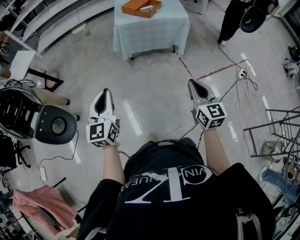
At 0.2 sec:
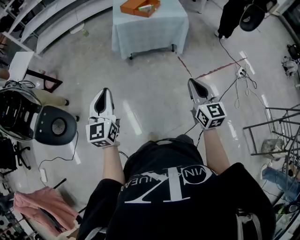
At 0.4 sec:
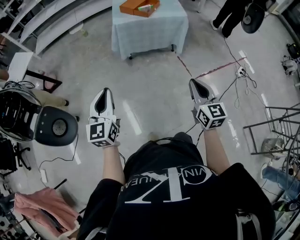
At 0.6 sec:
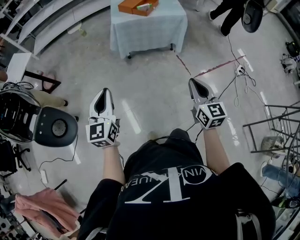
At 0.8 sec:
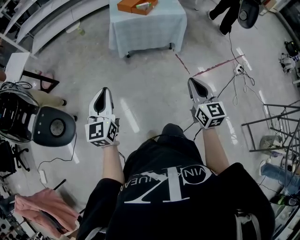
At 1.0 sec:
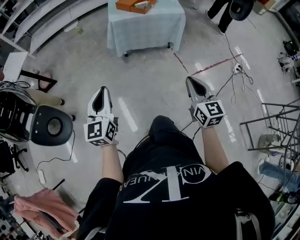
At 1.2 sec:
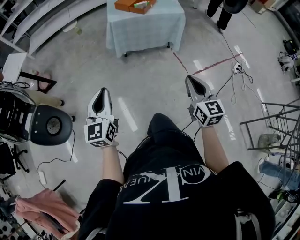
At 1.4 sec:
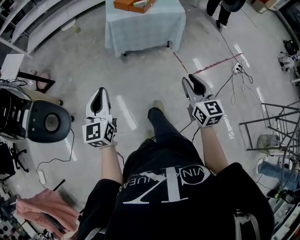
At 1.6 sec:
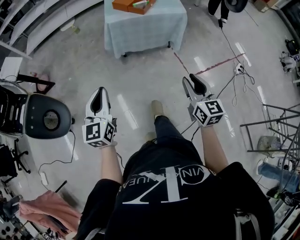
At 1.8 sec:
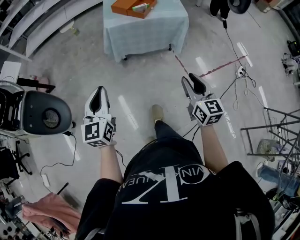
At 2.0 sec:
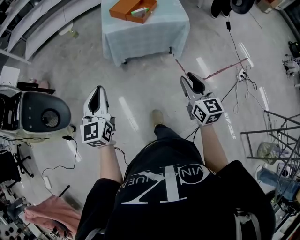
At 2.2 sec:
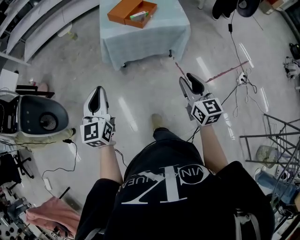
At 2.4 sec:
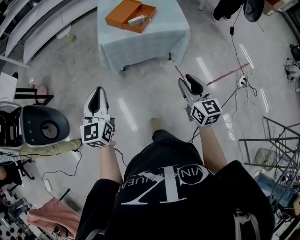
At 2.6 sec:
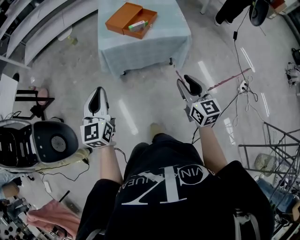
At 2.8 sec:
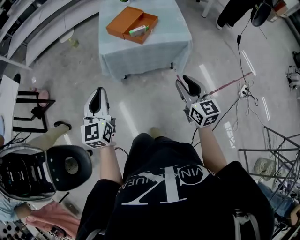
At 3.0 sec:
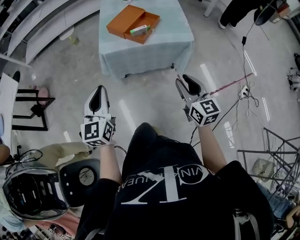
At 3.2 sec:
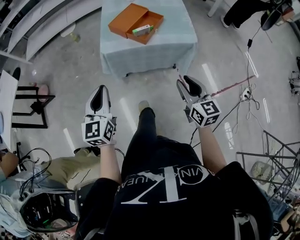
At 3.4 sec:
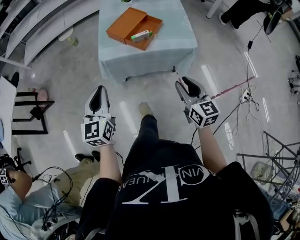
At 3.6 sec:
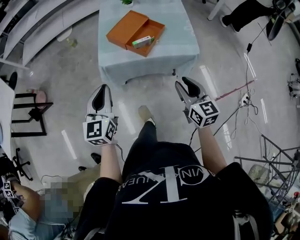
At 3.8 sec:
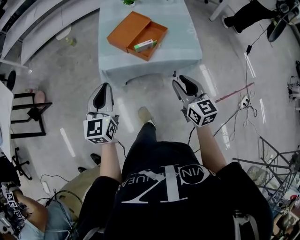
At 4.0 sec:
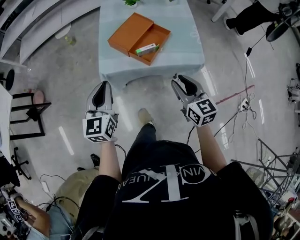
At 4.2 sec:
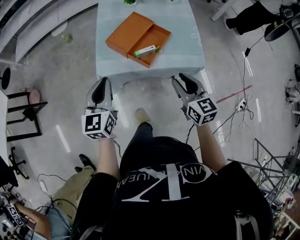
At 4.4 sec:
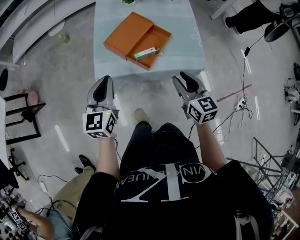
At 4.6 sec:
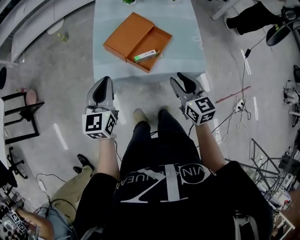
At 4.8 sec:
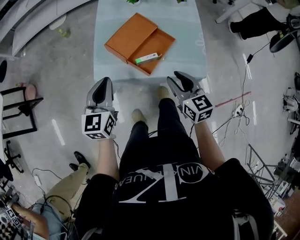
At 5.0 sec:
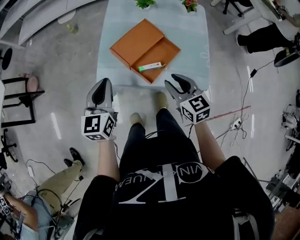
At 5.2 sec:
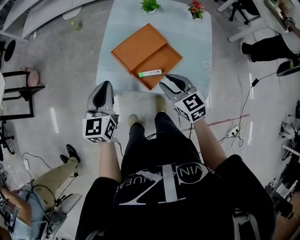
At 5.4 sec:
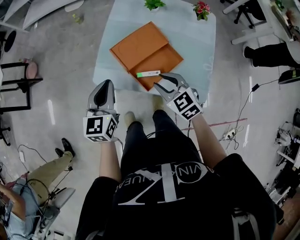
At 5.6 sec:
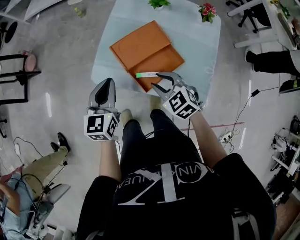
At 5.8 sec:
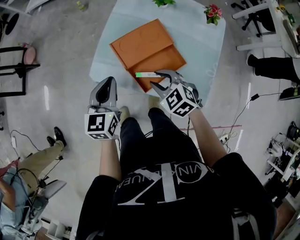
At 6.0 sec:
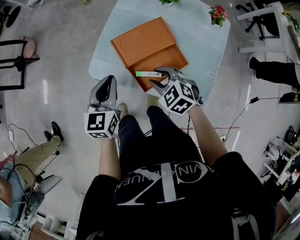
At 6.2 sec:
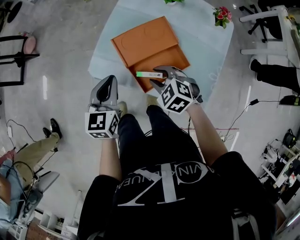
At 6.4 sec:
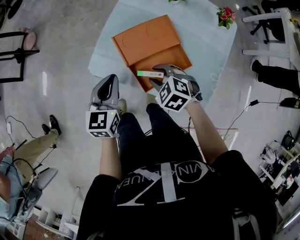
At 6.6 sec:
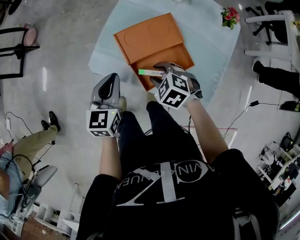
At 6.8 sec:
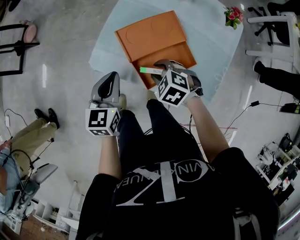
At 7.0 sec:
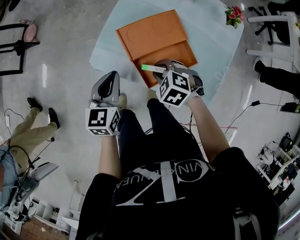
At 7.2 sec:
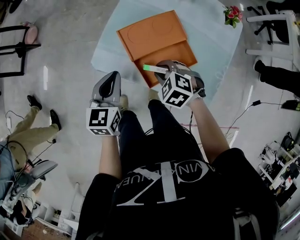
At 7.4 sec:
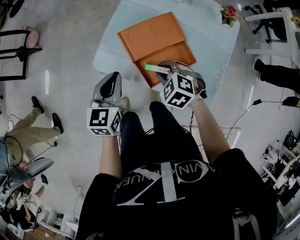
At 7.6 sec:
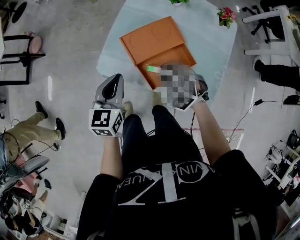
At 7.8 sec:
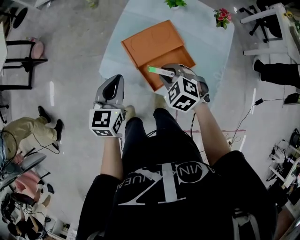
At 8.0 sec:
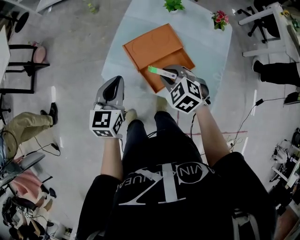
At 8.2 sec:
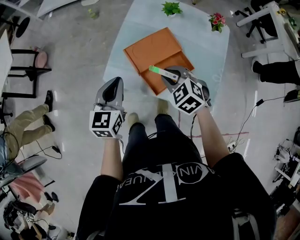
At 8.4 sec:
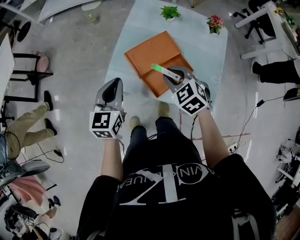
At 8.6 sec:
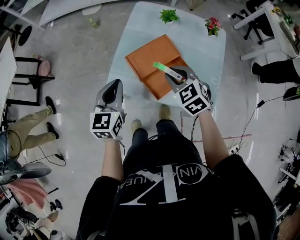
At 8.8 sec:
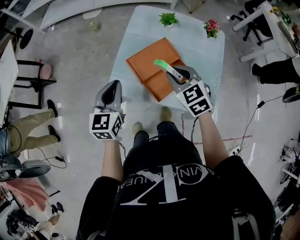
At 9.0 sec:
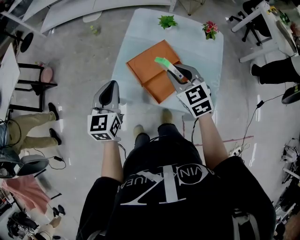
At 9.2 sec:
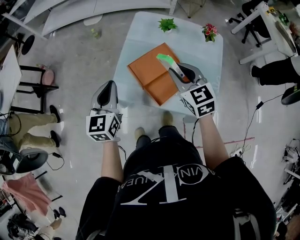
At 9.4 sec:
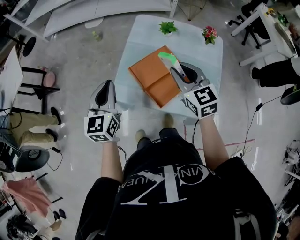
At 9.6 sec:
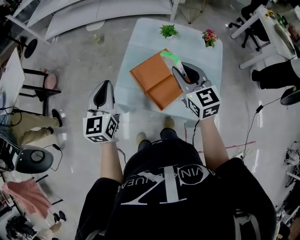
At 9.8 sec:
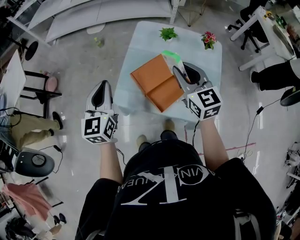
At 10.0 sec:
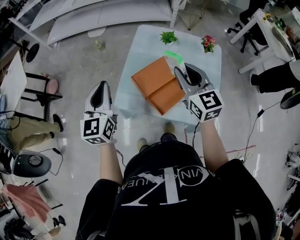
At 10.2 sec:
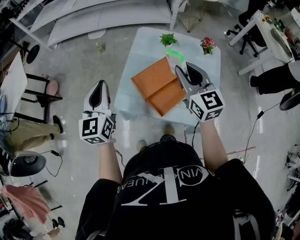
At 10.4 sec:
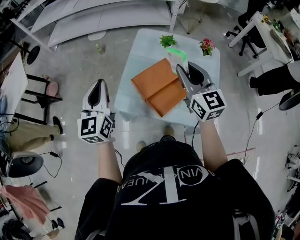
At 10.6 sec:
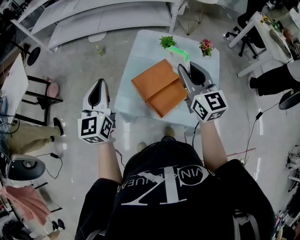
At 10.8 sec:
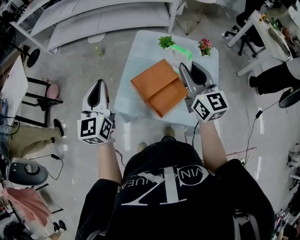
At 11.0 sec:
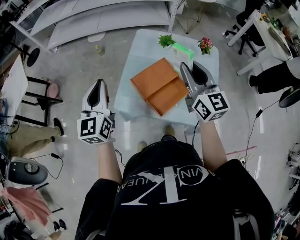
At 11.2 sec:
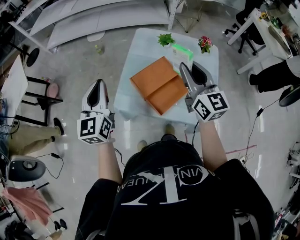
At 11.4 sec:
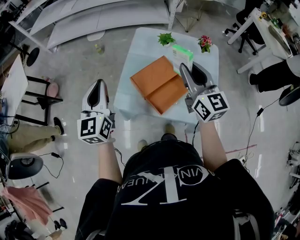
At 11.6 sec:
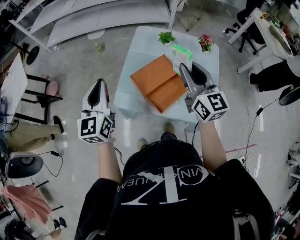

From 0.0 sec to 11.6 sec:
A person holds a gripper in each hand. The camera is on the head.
From 0.0 sec to 1.4 sec: The left gripper heads forward, covering about 5 cm. The right gripper ends up approximately 5 cm from where it was, and opens its fingers.
From 1.4 sec to 2.8 sec: Both grippers travel together forward, approximately 35 cm.
From 2.8 sec to 4.4 sec: The grippers both shift forward by approximately 30 cm.
From 4.4 sec to 5.8 sec: The right gripper changes place by about 20 cm, and turns by about 60 degrees; the left gripper changes place by roughly 10 cm, and swivels some 20 degrees.
From 5.8 sec to 7.2 sec: The right gripper shifts about 5 cm downward, and rotates about 20 degrees.
From 7.2 sec to 8.8 sec: The right gripper shifts roughly 15 cm upward, and swivels some 40 degrees. Meanwhile the left gripper is displaced upward by roughly 10 cm.
From 8.8 sec to 10.2 sec: The right gripper travels upward by about 15 cm, and swivels some 30 degrees, while the left gripper goes roughly 10 cm upward and to the left.
From 10.2 sec to 11.6 sec: There are only small adjustments of the grippers.

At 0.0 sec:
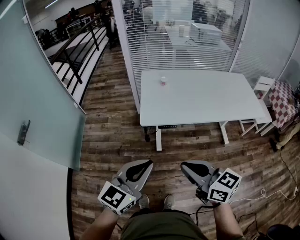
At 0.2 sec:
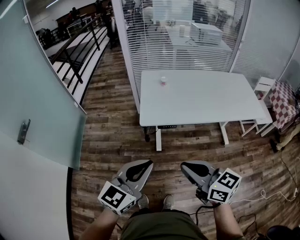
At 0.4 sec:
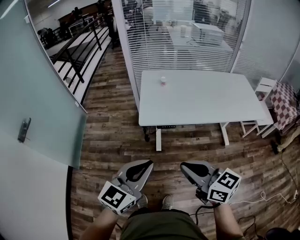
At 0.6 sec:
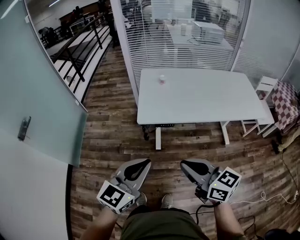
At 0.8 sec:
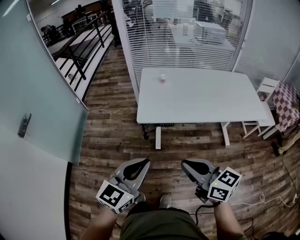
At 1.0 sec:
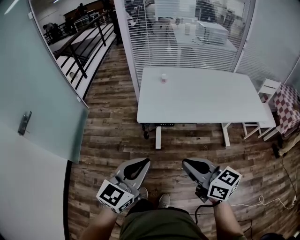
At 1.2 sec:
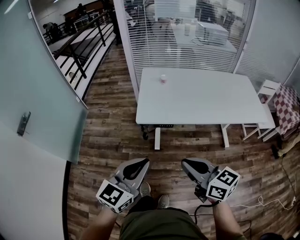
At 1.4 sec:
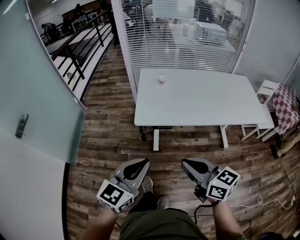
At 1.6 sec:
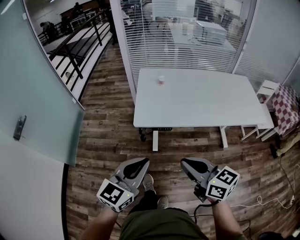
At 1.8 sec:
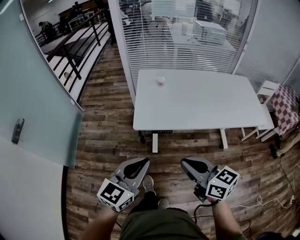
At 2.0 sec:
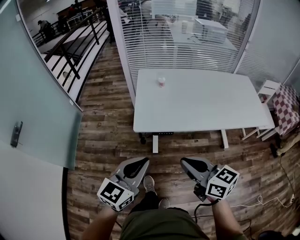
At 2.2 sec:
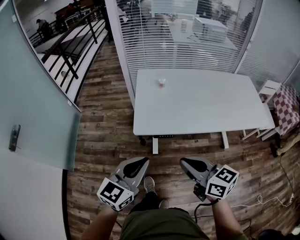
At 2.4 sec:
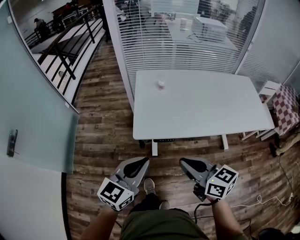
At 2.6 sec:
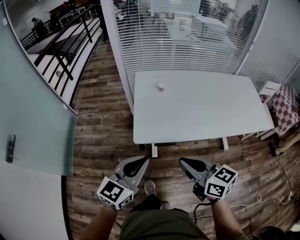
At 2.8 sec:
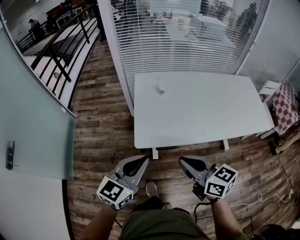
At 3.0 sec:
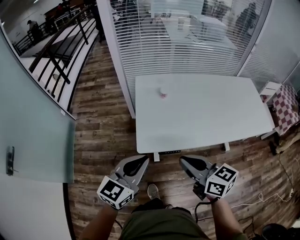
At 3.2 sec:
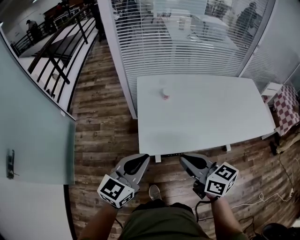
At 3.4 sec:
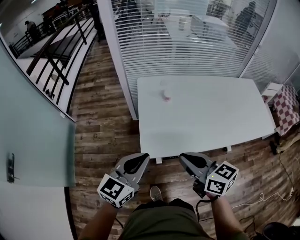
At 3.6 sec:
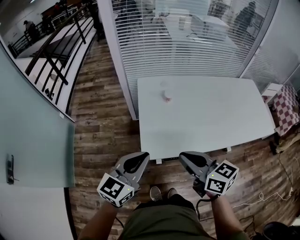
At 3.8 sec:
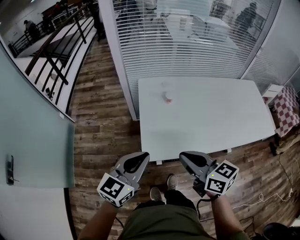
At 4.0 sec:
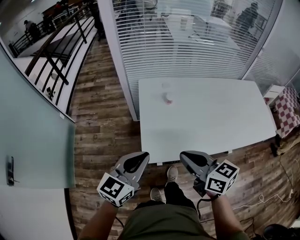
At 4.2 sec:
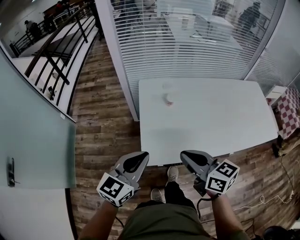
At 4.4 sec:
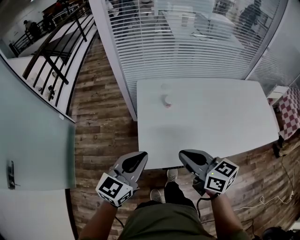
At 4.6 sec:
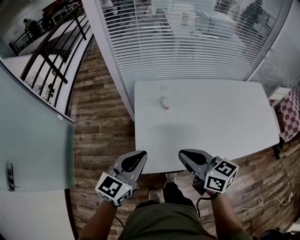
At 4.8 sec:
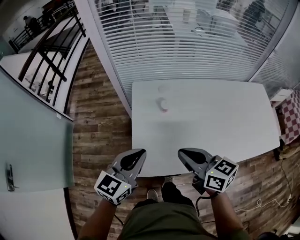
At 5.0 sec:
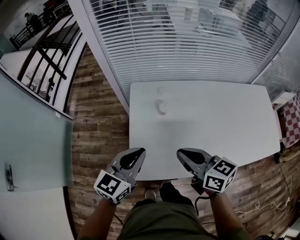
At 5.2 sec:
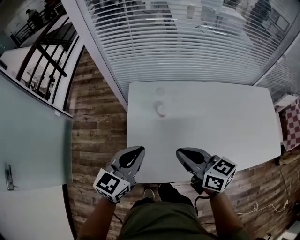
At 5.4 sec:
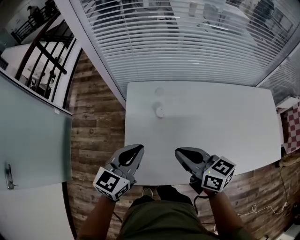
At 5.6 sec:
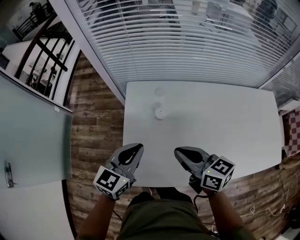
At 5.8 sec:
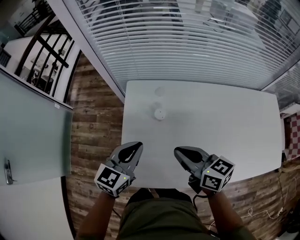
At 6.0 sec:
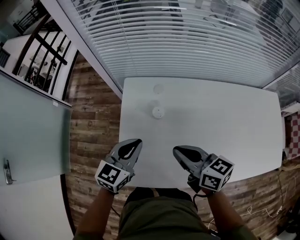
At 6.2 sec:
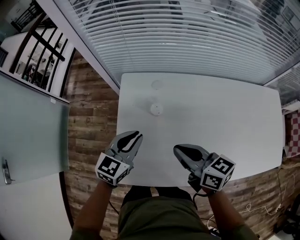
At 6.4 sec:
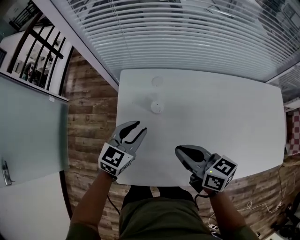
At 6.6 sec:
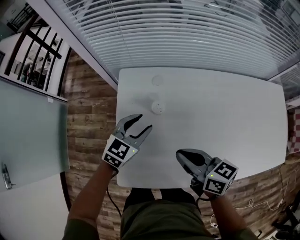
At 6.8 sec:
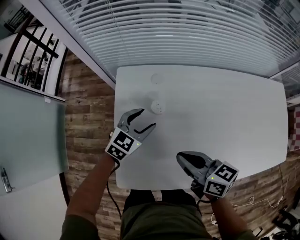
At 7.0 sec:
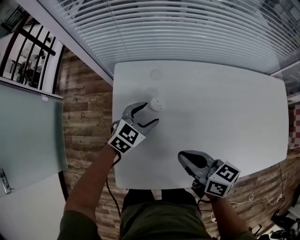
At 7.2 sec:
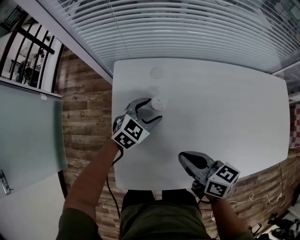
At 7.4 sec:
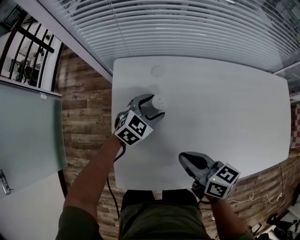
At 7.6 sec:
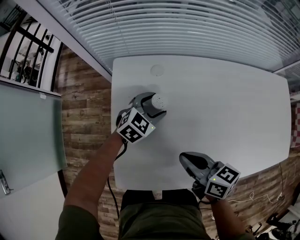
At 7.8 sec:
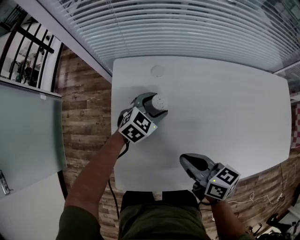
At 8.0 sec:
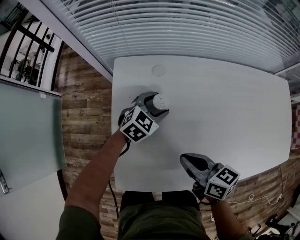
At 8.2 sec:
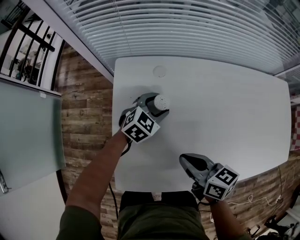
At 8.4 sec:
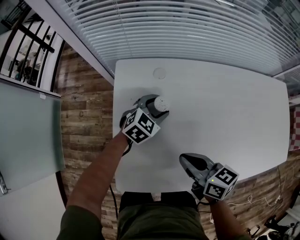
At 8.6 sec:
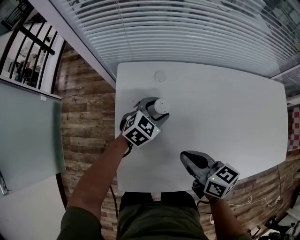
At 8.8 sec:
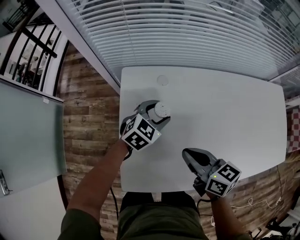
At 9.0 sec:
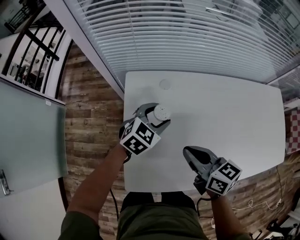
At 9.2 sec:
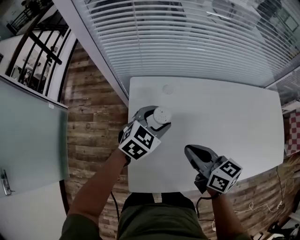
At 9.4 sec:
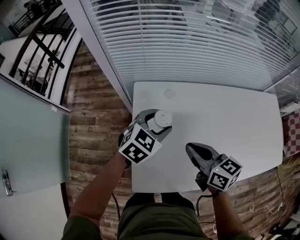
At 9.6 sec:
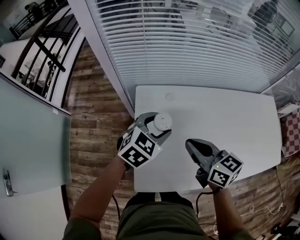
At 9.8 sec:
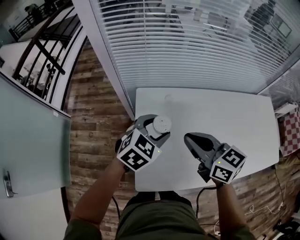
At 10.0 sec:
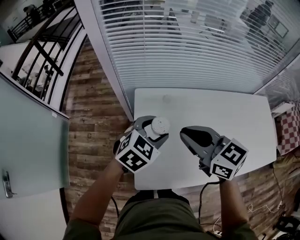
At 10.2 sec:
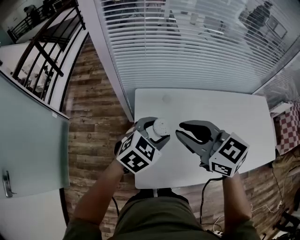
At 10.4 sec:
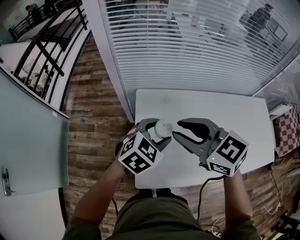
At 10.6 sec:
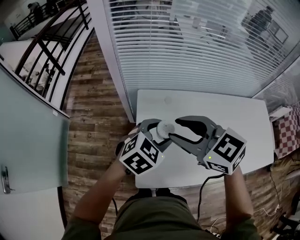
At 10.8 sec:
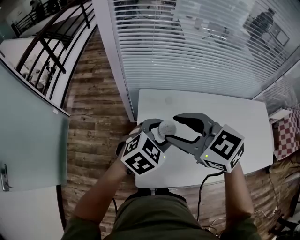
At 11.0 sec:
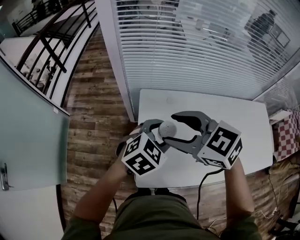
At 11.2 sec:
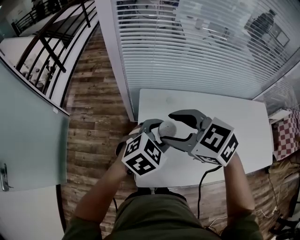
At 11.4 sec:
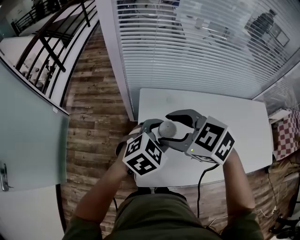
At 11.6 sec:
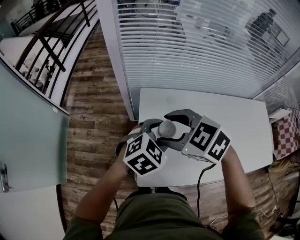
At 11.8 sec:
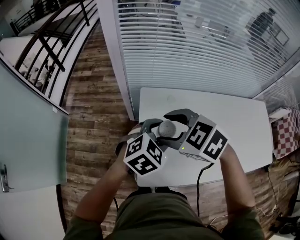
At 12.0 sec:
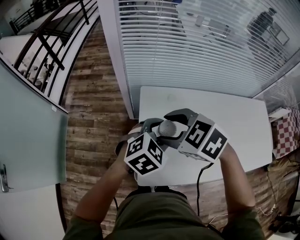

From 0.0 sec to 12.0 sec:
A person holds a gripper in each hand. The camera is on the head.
From 0.0 sec to 1.6 sec: The left gripper ends up approximately 5 cm from where it was. Meanwhile the right gripper shifts some 5 cm to the right.
From 1.6 sec to 3.0 sec: Both grippers travel together forward, some 20 cm.
From 3.0 sec to 4.4 sec: Both grippers move forward, about 15 cm.
From 4.4 sec to 6.0 sec: The left gripper moves forward, to the right and downward, roughly 25 cm. Meanwhile the right gripper is displaced forward and to the right by approximately 20 cm.
From 6.0 sec to 7.6 sec: The right gripper travels downward by approximately 10 cm, while the left gripper heads downward, forward and to the right, covering about 25 cm, changes its angle by about 30 degrees, and opens.
From 7.6 sec to 9.0 sec: The right gripper goes about 5 cm upward; the left gripper goes some 10 cm upward.
From 9.0 sec to 10.4 sec: The right gripper is displaced upward and to the left by about 20 cm, changes its angle by roughly 40 degrees, and opens up. The left gripper shifts roughly 20 cm upward and backward.
From 10.4 sec to 12.0 sec: The right gripper heads to the left and downward, covering some 10 cm, turns by some 30 degrees, and opens up.
